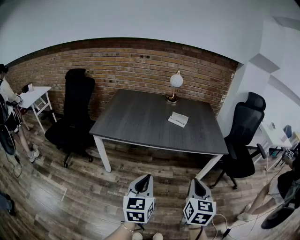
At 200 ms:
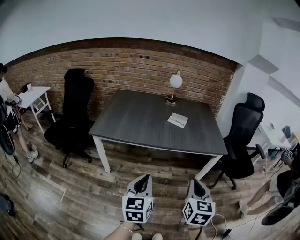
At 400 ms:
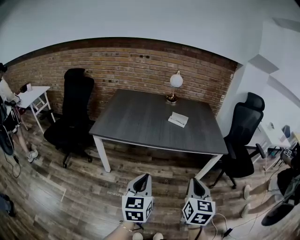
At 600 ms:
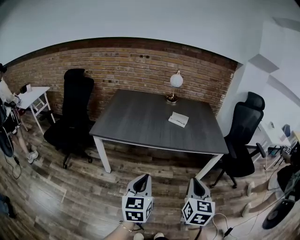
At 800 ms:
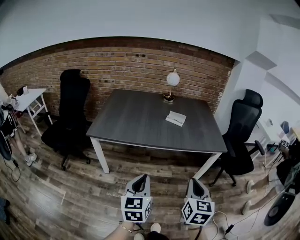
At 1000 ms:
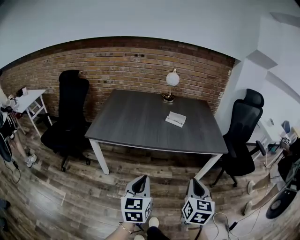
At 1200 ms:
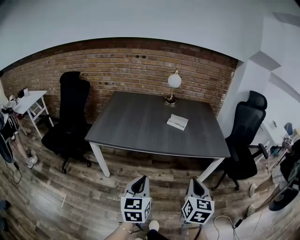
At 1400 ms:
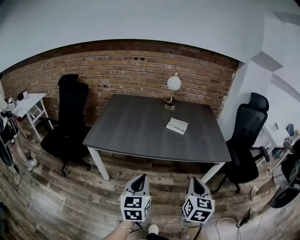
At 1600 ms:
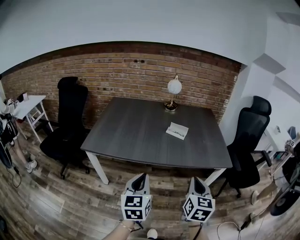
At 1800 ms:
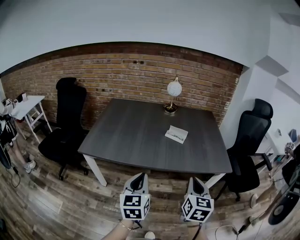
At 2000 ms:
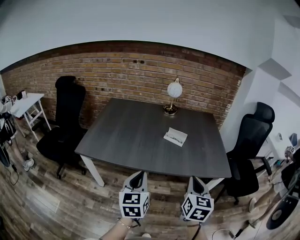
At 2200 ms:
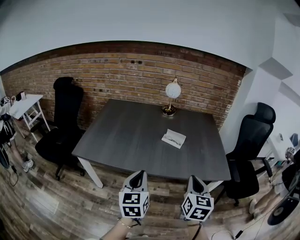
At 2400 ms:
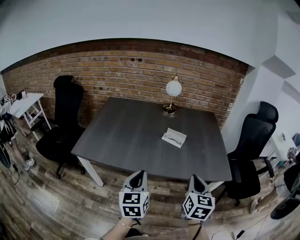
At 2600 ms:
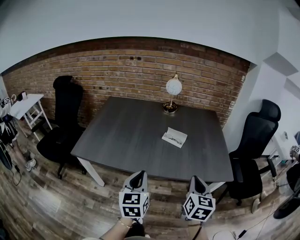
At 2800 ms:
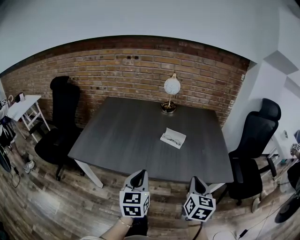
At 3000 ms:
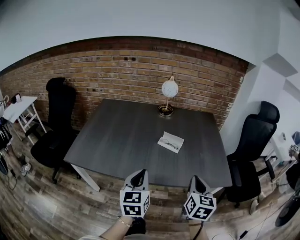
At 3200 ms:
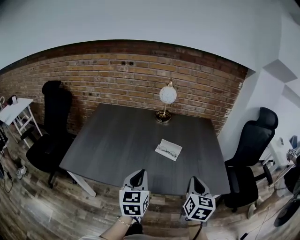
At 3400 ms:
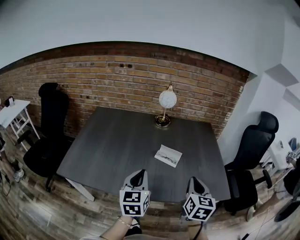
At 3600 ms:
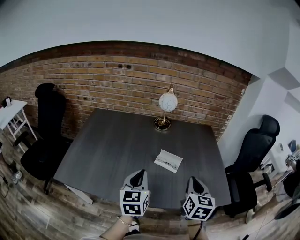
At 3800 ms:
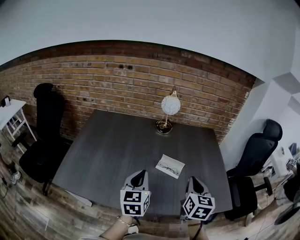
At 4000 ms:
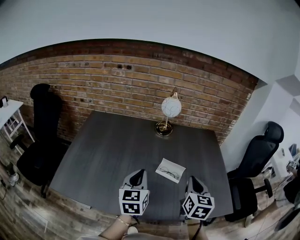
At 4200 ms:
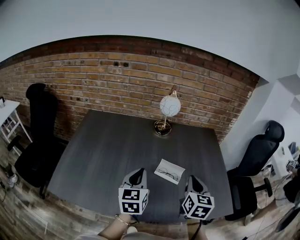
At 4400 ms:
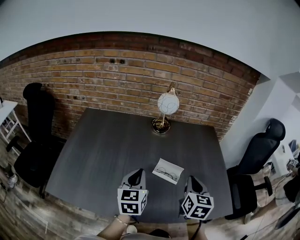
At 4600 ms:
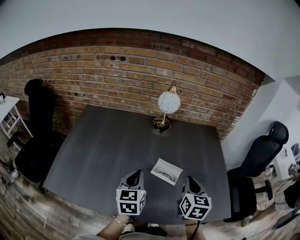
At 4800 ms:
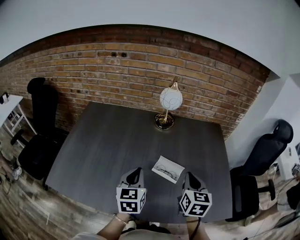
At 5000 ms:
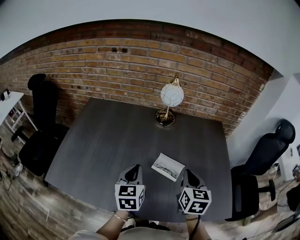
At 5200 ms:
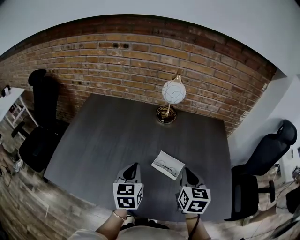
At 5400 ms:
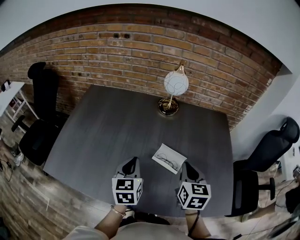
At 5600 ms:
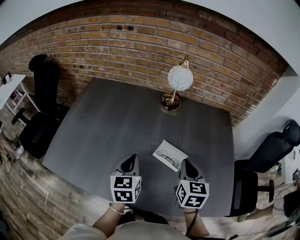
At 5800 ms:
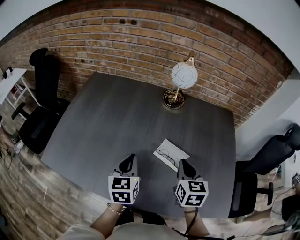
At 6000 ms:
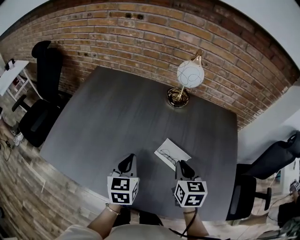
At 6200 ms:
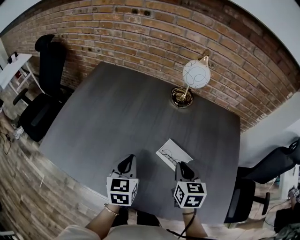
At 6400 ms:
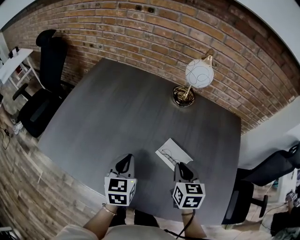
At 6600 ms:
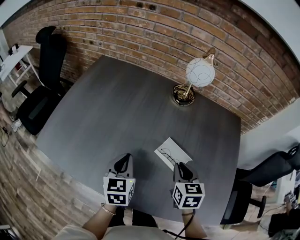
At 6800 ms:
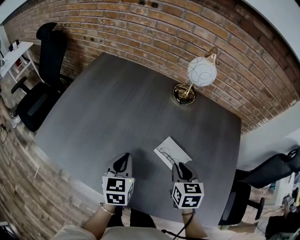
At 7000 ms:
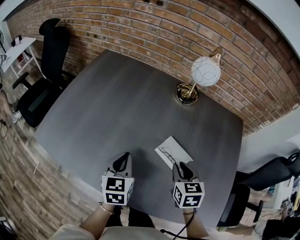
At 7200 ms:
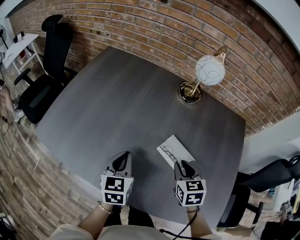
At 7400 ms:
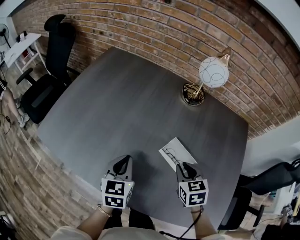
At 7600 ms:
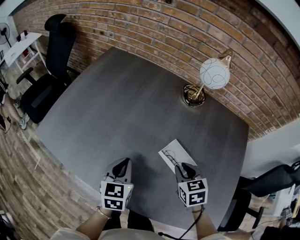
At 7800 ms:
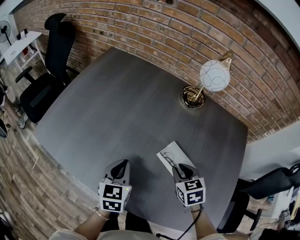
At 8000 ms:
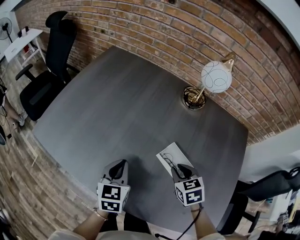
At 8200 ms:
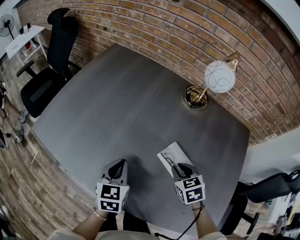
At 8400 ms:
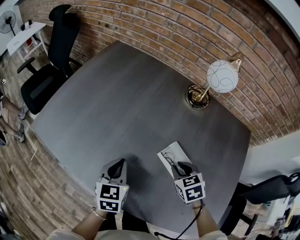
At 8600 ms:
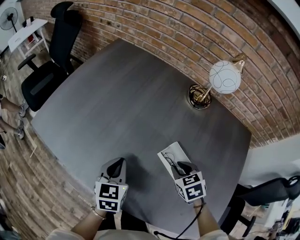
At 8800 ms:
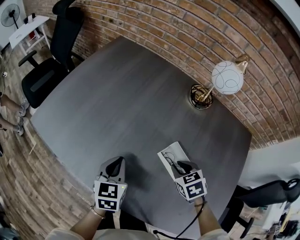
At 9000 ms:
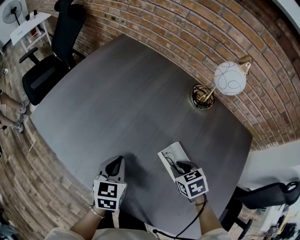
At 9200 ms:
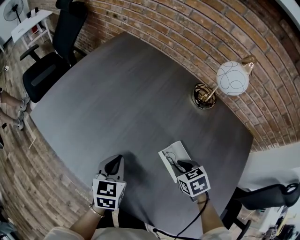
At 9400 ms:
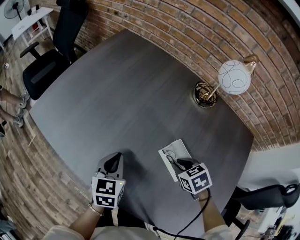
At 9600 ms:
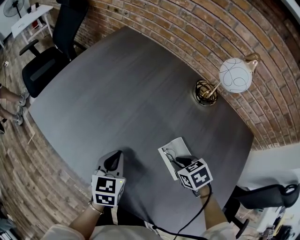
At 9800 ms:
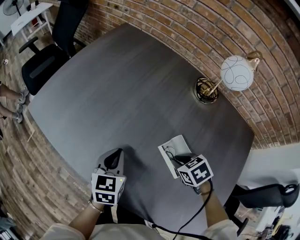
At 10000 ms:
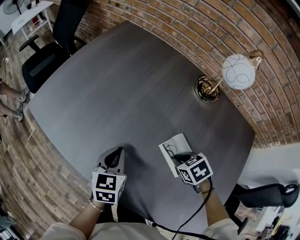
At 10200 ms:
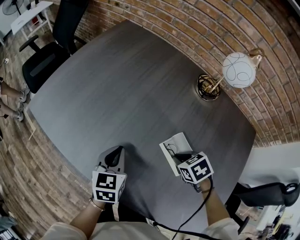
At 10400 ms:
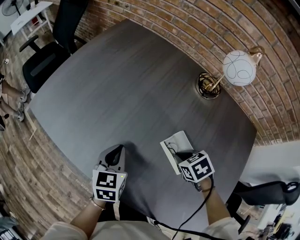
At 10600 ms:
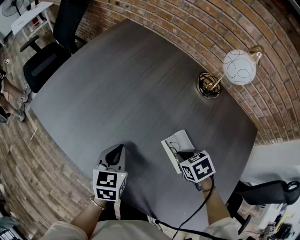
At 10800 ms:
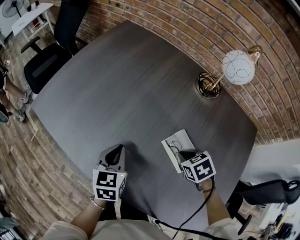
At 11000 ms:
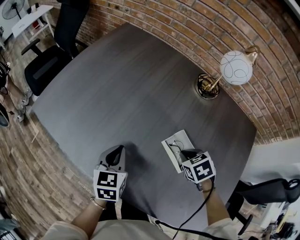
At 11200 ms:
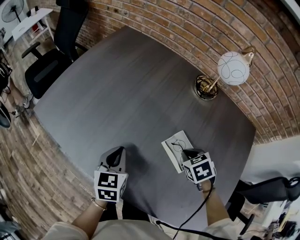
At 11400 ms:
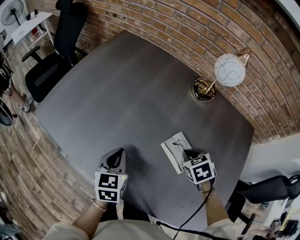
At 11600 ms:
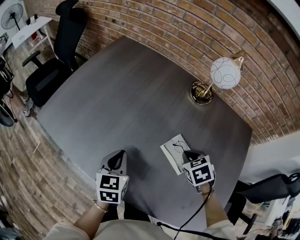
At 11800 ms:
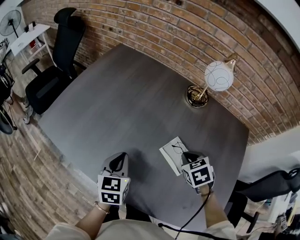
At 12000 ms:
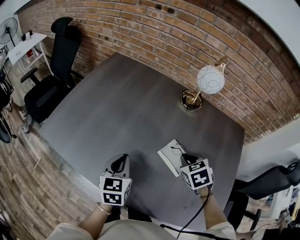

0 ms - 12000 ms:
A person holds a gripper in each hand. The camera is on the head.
0 ms - 1600 ms: The two grippers go about 15 cm forward.
1600 ms - 3000 ms: Both grippers travel together forward, some 15 cm.
3000 ms - 4400 ms: Both grippers travel together forward, roughly 20 cm.
4400 ms - 6000 ms: The right gripper shifts about 10 cm downward and forward, and swivels about 30 degrees; the left gripper goes roughly 10 cm downward.
6000 ms - 7600 ms: Both grippers move downward, about 5 cm. The right gripper turns by roughly 30 degrees.
7600 ms - 9000 ms: The right gripper moves downward, approximately 5 cm, and turns by approximately 20 degrees.
9000 ms - 10400 ms: The grippers stay close to where they were, moving slightly.
10400 ms - 12000 ms: The left gripper shifts some 5 cm upward; the right gripper travels upward by about 10 cm, and turns by roughly 30 degrees.

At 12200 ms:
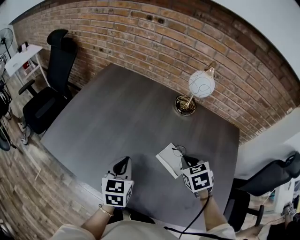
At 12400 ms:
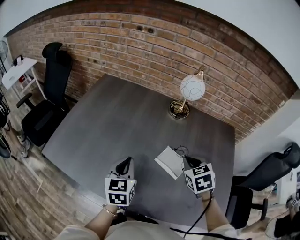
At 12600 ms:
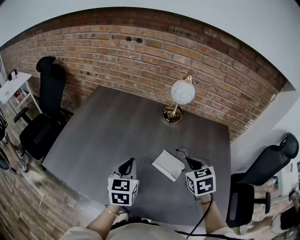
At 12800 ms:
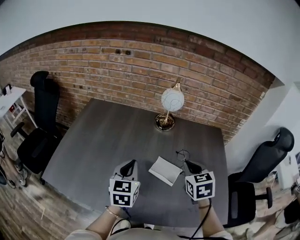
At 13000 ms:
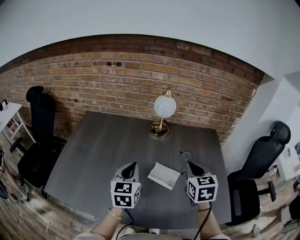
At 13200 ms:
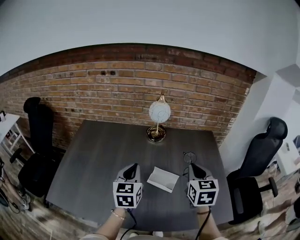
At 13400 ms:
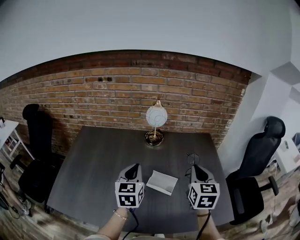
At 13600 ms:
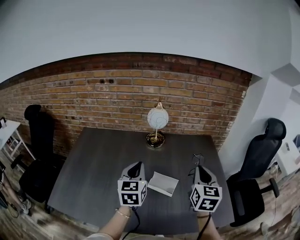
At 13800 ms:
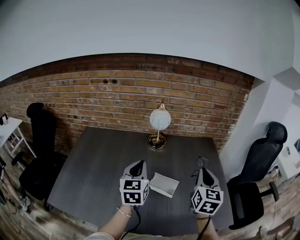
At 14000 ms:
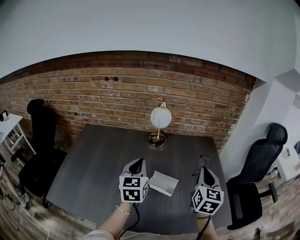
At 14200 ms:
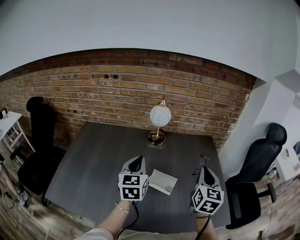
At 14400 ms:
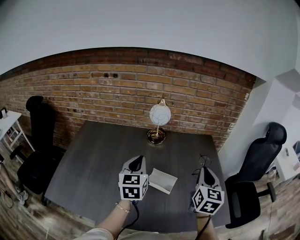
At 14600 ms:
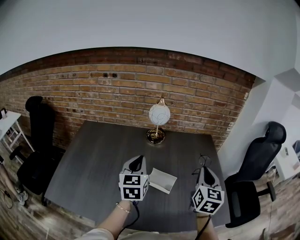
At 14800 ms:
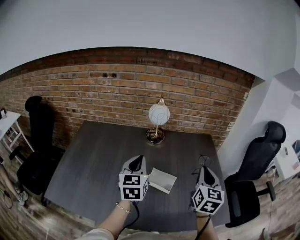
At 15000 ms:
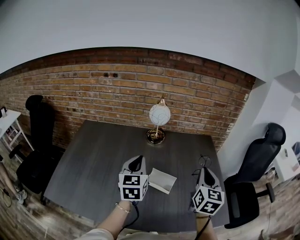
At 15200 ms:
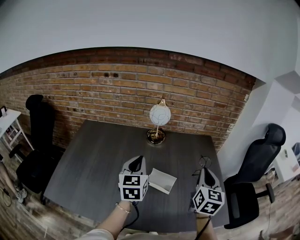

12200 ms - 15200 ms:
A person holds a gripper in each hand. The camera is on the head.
12200 ms - 13800 ms: The grippers both shift upward by about 15 cm. The right gripper tilts its fingers some 40 degrees upward. The left gripper swivels roughly 20 degrees.
13800 ms - 15200 ms: The grippers make only small movements.

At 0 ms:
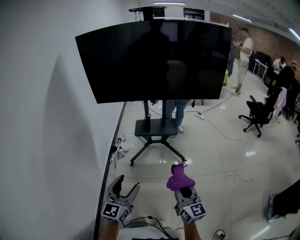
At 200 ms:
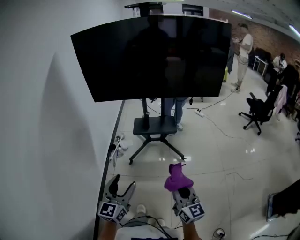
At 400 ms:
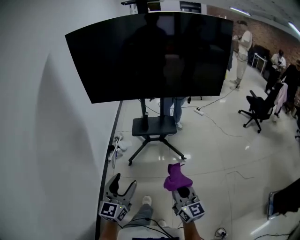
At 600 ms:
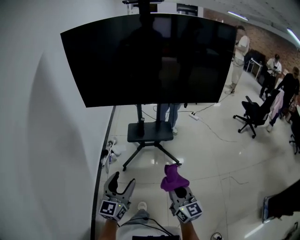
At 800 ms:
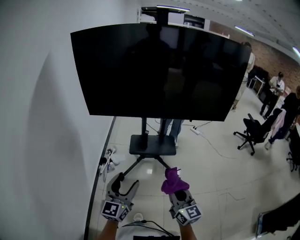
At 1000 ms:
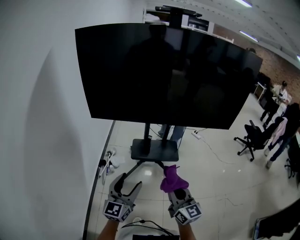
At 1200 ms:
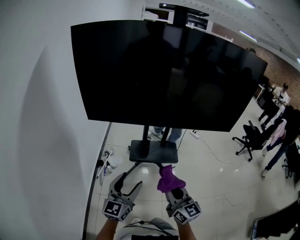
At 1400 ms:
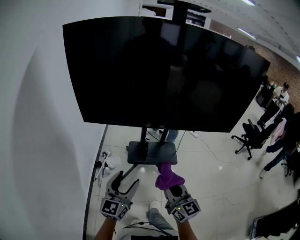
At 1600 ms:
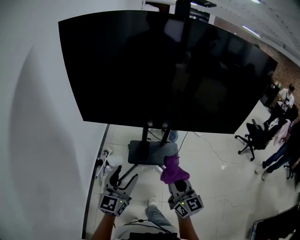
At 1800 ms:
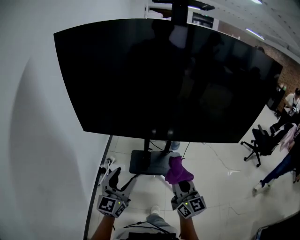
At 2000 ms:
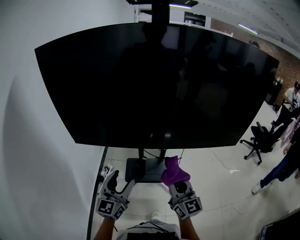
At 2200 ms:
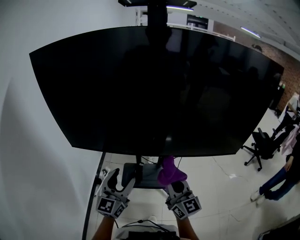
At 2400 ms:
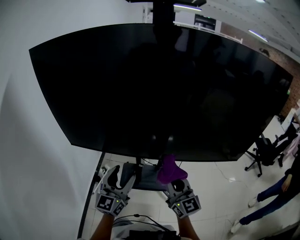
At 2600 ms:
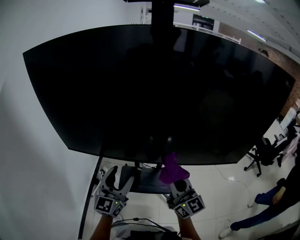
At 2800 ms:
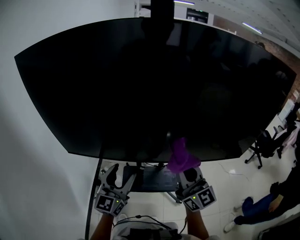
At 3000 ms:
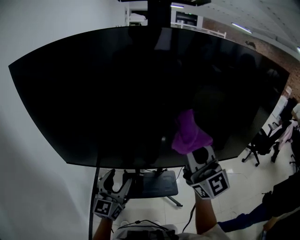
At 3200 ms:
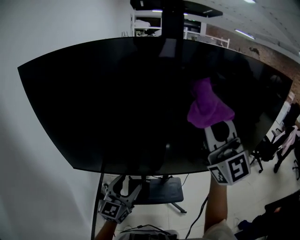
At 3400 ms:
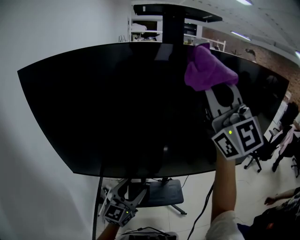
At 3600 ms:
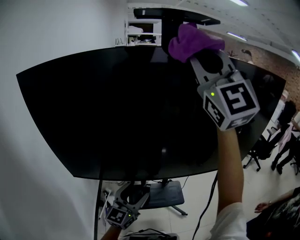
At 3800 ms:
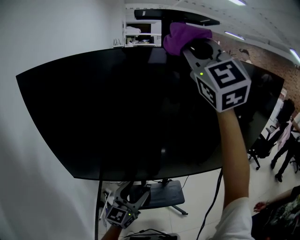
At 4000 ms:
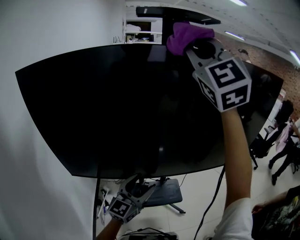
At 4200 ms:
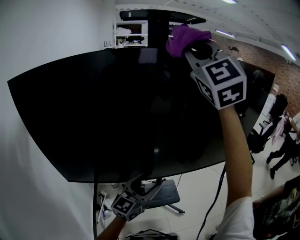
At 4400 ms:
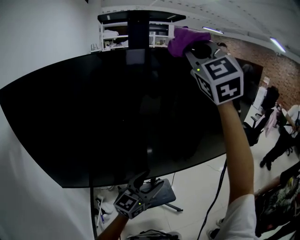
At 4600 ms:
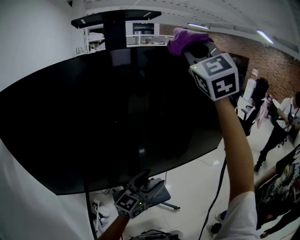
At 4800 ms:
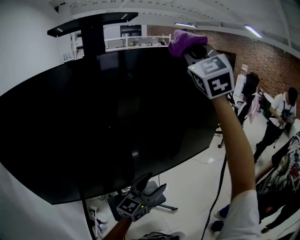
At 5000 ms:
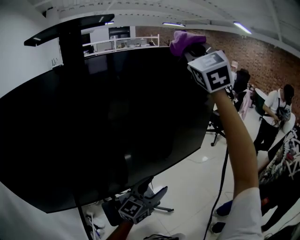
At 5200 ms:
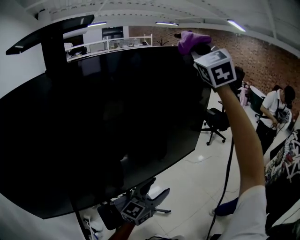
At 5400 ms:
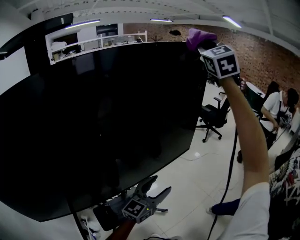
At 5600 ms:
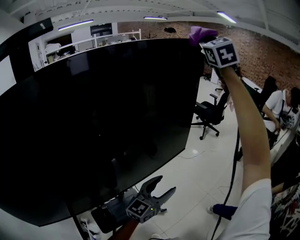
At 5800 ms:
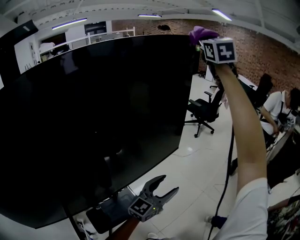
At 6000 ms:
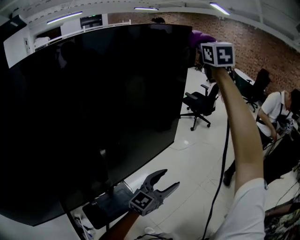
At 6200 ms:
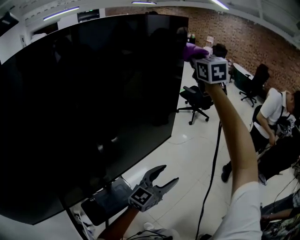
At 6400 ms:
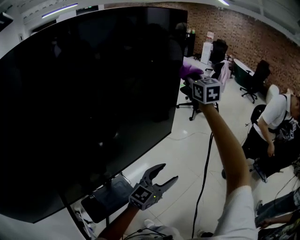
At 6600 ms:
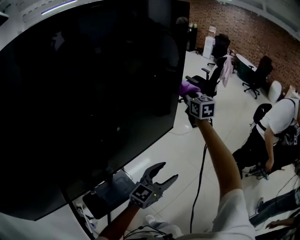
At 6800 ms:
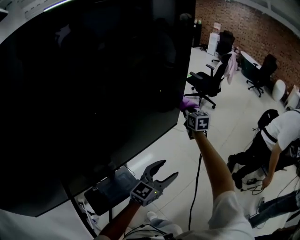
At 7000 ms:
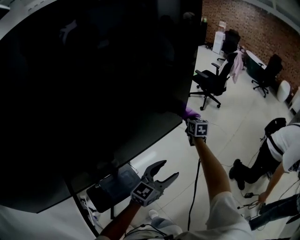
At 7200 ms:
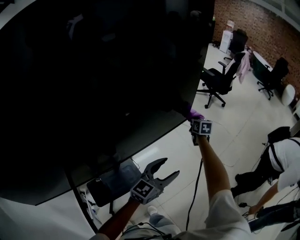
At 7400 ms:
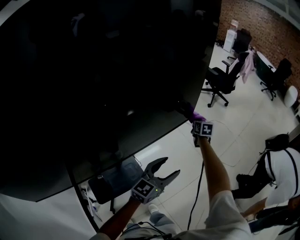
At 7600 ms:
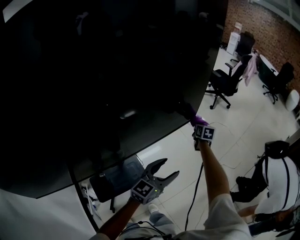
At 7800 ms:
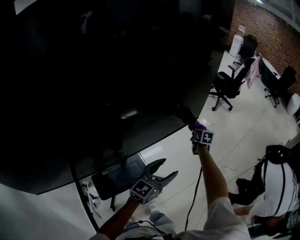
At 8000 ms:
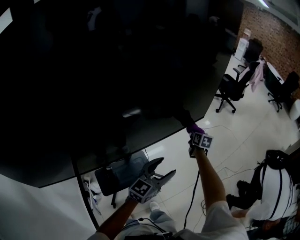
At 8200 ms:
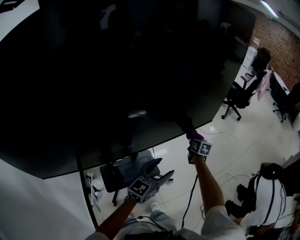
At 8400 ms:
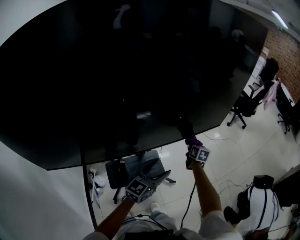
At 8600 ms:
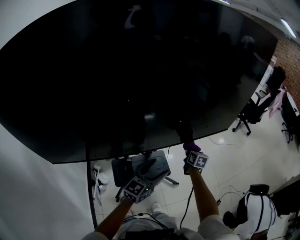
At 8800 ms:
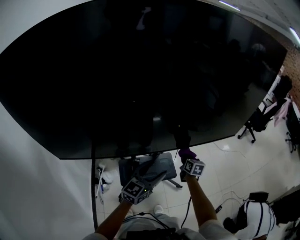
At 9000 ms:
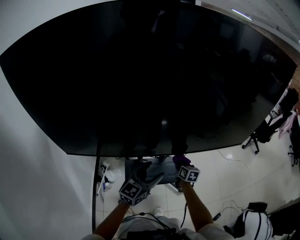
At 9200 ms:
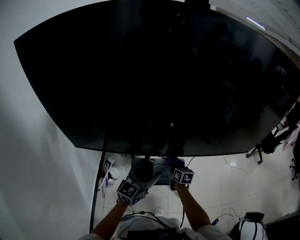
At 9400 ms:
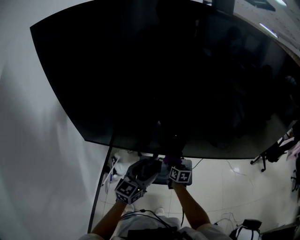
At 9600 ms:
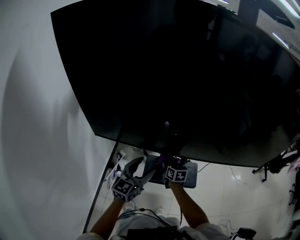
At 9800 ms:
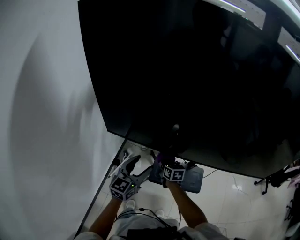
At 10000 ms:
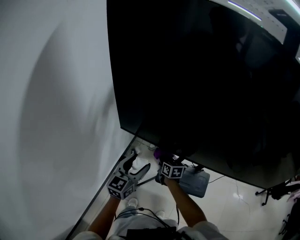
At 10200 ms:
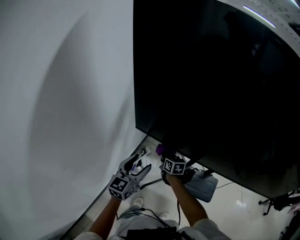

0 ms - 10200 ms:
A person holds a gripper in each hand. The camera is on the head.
0 ms - 1400 ms: The grippers both shift forward by about 40 cm.
1400 ms - 3000 ms: The right gripper goes approximately 40 cm forward and upward, and turns by roughly 30 degrees. The left gripper heads forward, covering roughly 30 cm.
3000 ms - 4400 ms: The left gripper changes place by some 15 cm, and rotates roughly 30 degrees, while the right gripper is displaced upward by approximately 30 cm, and rotates roughly 50 degrees.
4400 ms - 5800 ms: The left gripper changes place by about 35 cm, and changes its angle by some 30 degrees; the right gripper changes place by about 60 cm, and turns by some 40 degrees.
5800 ms - 7200 ms: The left gripper heads downward, covering about 10 cm. The right gripper goes some 70 cm downward, and tips its fingers downward by roughly 40 degrees.
7200 ms - 8800 ms: The left gripper changes place by roughly 35 cm, and swivels roughly 30 degrees; the right gripper shifts by approximately 50 cm, and changes its angle by approximately 20 degrees.
8800 ms - 10200 ms: The pair of grippers is taken about 50 cm. The right gripper rotates about 50 degrees; the left gripper changes its angle by about 50 degrees.
